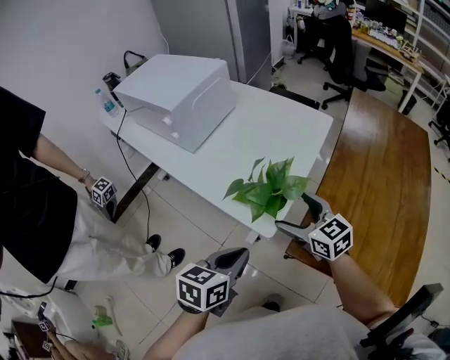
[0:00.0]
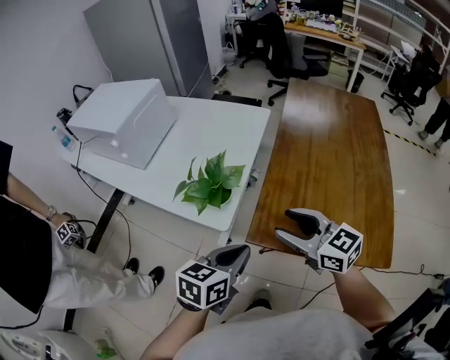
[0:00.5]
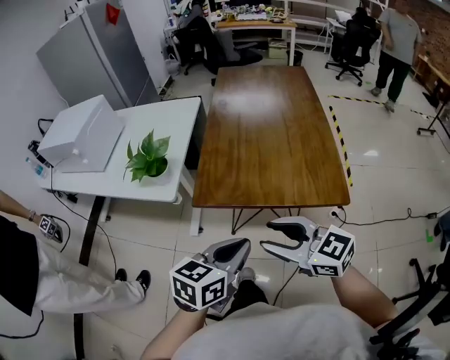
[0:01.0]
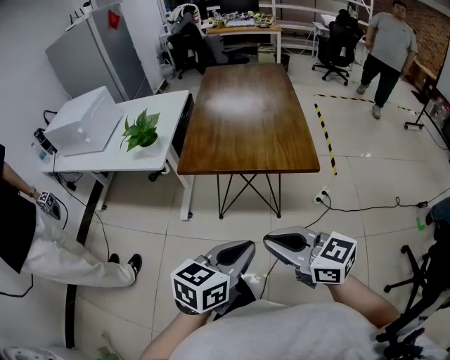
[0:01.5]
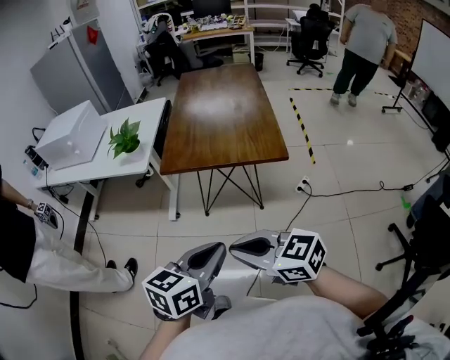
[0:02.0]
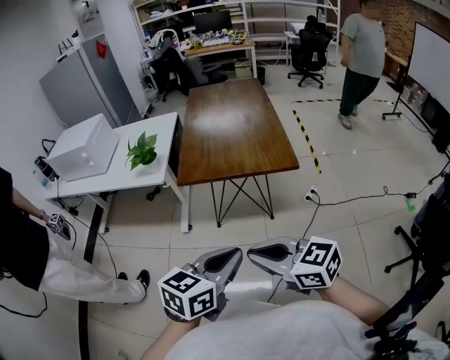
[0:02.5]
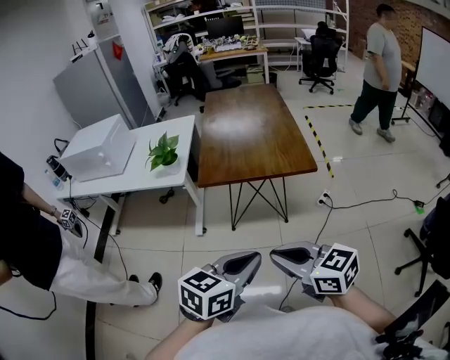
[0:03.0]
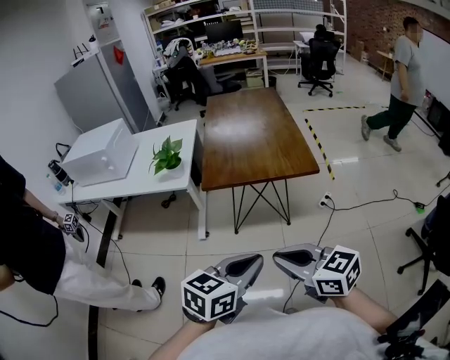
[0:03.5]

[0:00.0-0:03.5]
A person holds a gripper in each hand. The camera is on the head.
0:00.0 to 0:02.0: The two grippers travel together, backward and to the right, approximately 60 cm. The left gripper changes its angle by approximately 30 degrees; the right gripper closes up.
0:02.0 to 0:03.5: The grippers both shift to the left by roughly 5 cm.

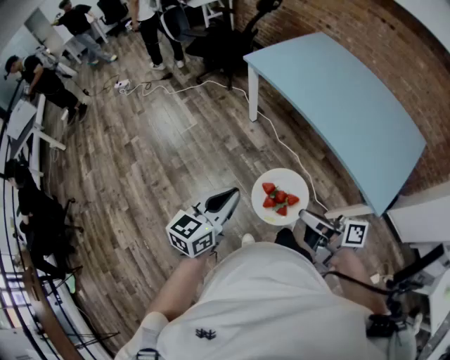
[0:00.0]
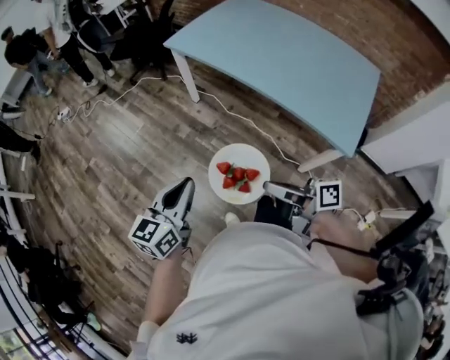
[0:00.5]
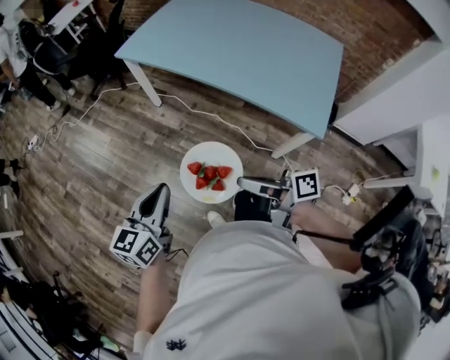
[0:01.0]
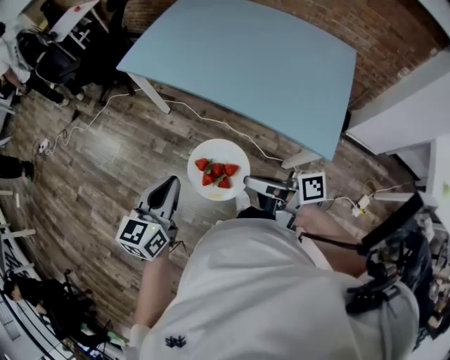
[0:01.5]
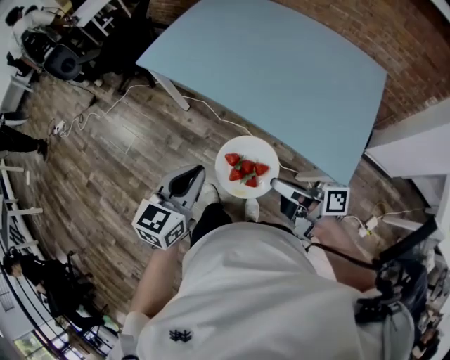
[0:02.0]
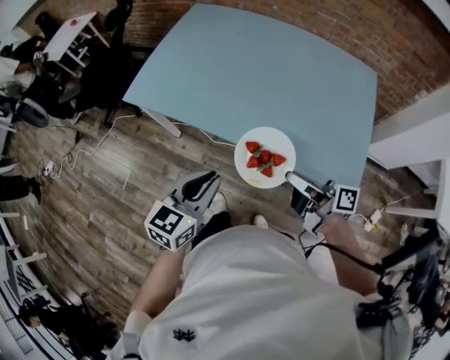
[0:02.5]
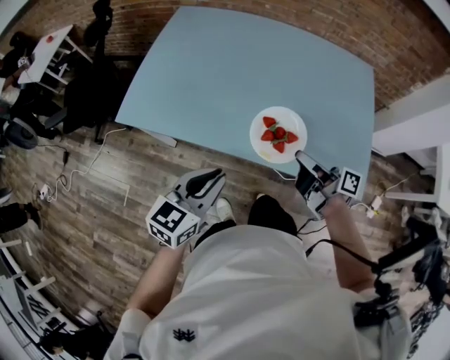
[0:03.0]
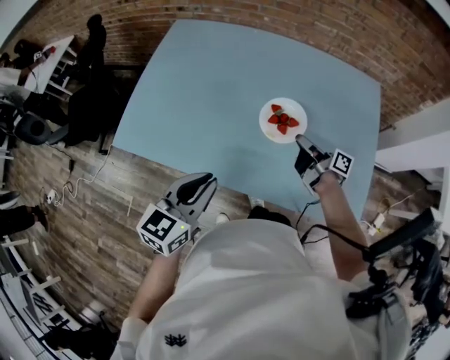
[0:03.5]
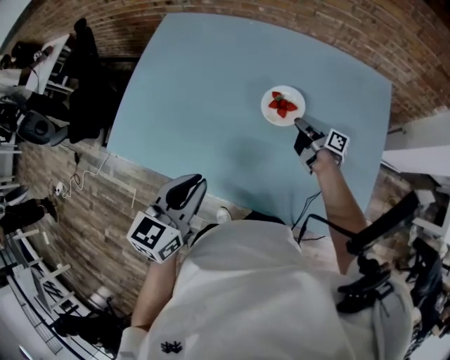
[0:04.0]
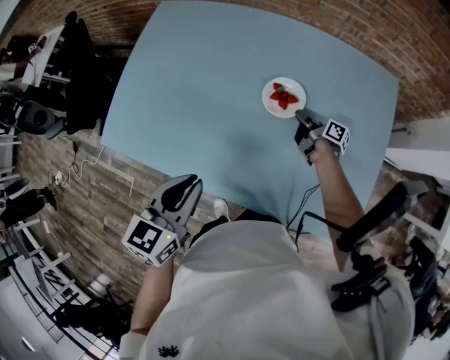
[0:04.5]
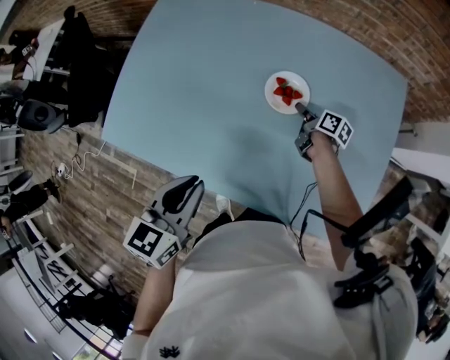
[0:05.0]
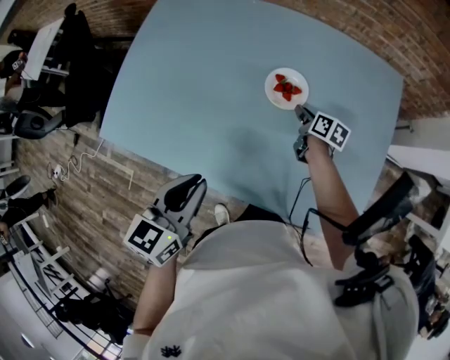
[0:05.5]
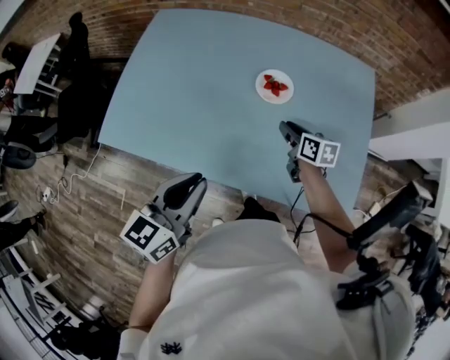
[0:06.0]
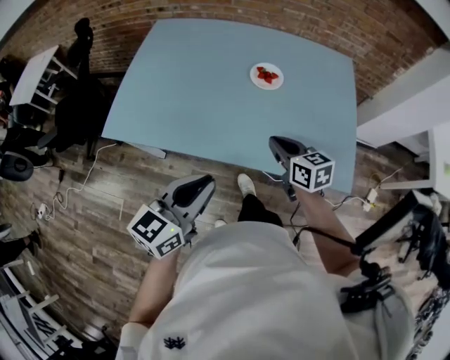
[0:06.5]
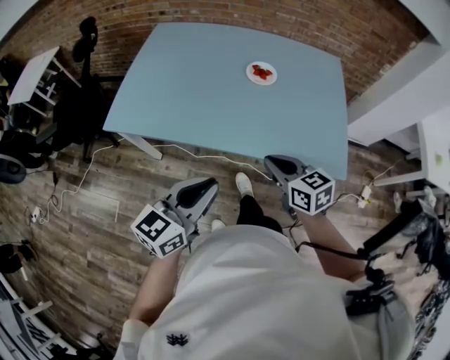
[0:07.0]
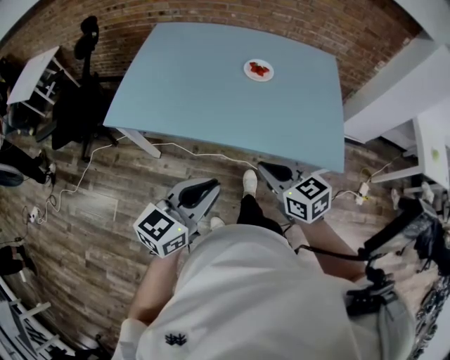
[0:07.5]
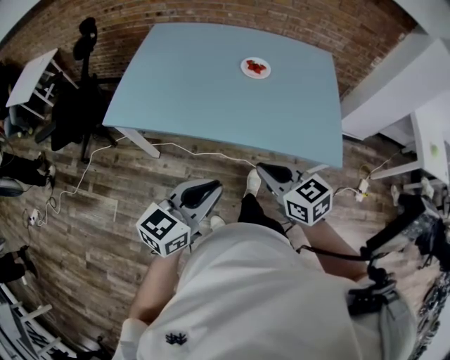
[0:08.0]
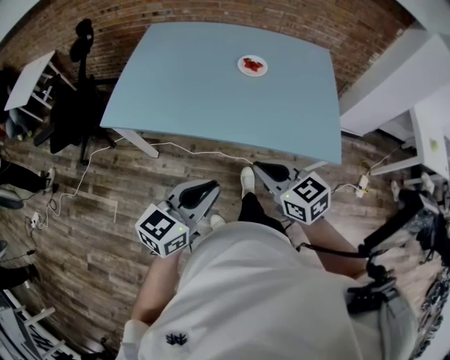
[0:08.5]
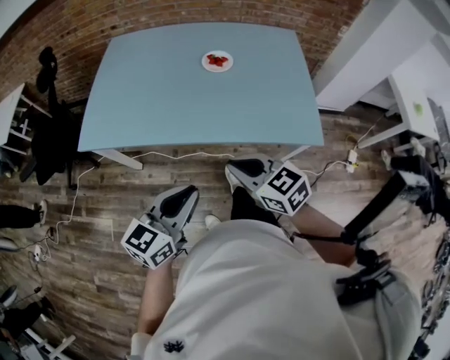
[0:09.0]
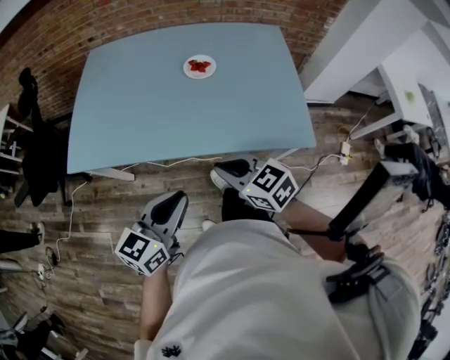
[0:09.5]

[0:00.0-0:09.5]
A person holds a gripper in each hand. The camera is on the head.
0:00.0 to 0:02.0: Both grippers travel together forward and to the right, roughly 25 cm.
0:02.0 to 0:04.0: The left gripper reaches some 5 cm upward, then returns, while the right gripper changes place by some 60 cm, and rotates approximately 40 degrees.
0:04.0 to 0:05.5: The right gripper swivels some 40 degrees, and opens up.
0:05.5 to 0:07.5: The right gripper goes about 50 cm backward and upward, twists some 50 degrees counterclockwise, seen from behind, and closes its fingers; the left gripper travels backward by approximately 30 cm, and turns by roughly 30 degrees.
0:07.5 to 0:09.5: The left gripper moves some 5 cm.

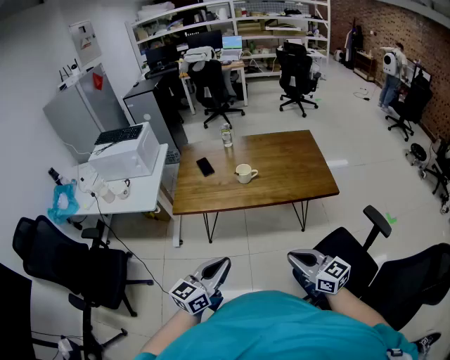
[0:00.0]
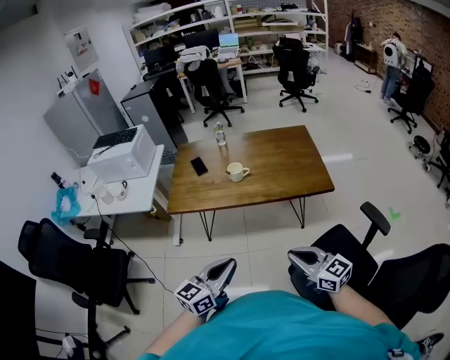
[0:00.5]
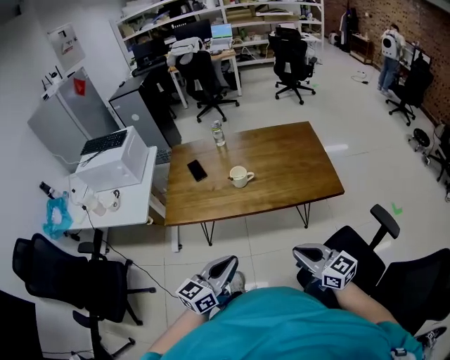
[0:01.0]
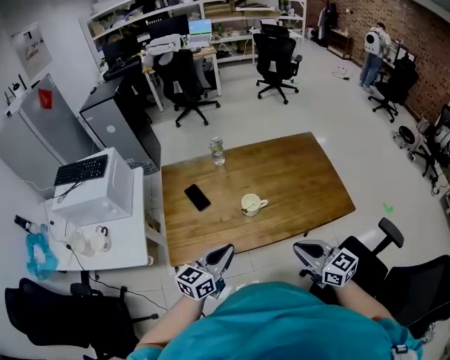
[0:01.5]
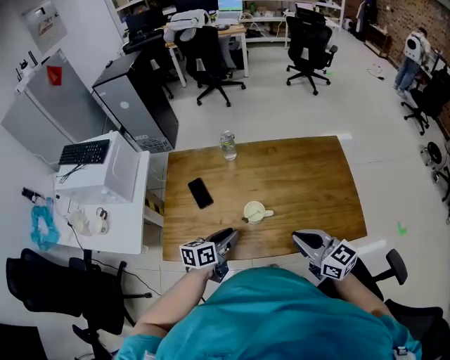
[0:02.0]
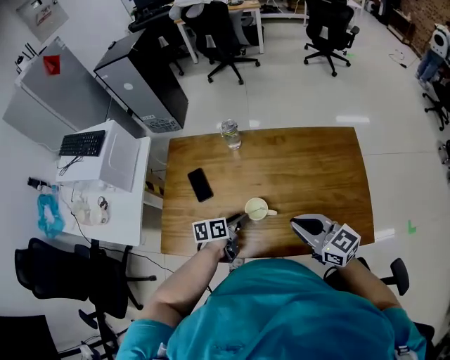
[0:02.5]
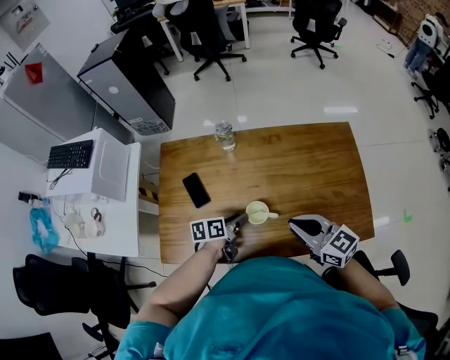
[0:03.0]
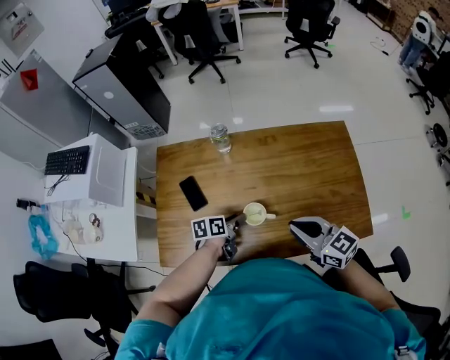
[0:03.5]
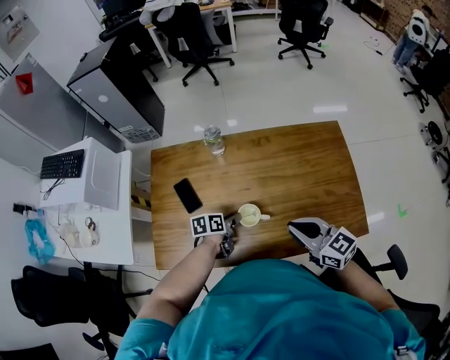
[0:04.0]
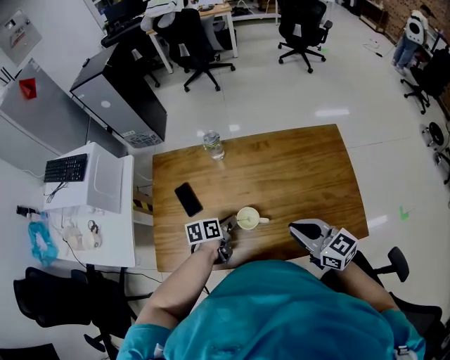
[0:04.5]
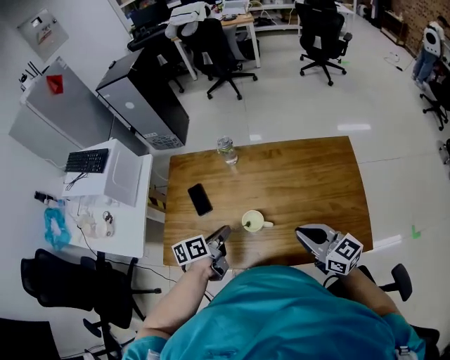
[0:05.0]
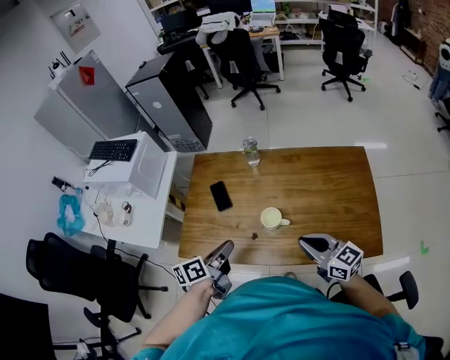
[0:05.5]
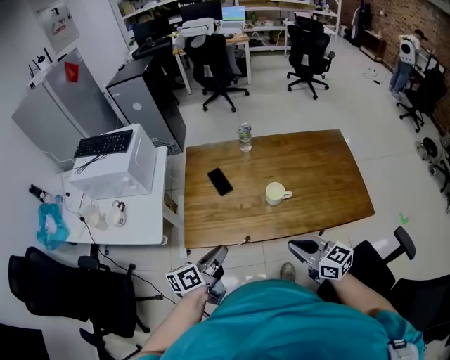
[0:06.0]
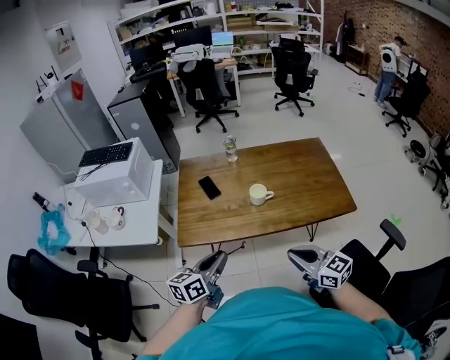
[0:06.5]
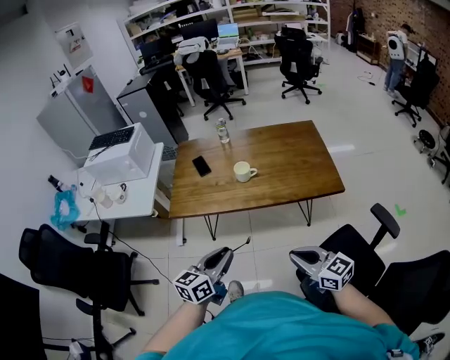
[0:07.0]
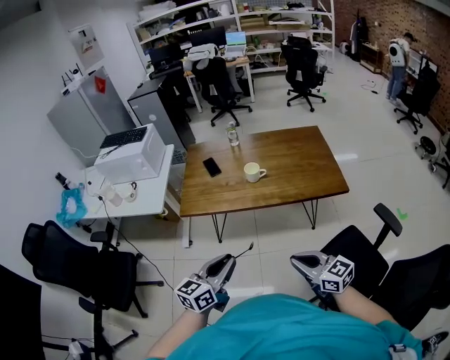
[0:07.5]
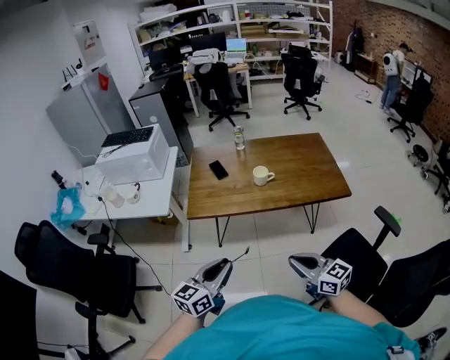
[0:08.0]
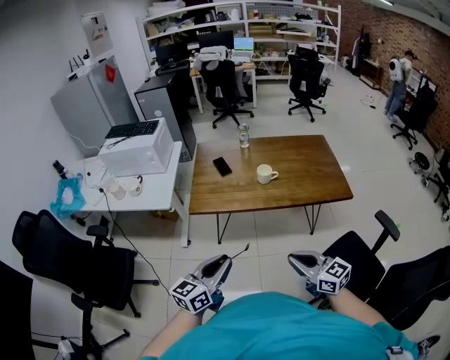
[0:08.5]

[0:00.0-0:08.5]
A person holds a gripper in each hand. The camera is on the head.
0:00.0 to 0:02.0: The two grippers travel together, forward, some 60 cm. The left gripper rotates roughly 40 degrees, and opens up.
0:02.0 to 0:04.0: The left gripper is displaced forward and downward by some 20 cm, and turns by some 30 degrees. Meanwhile the right gripper heads forward, covering about 15 cm.
0:04.0 to 0:06.5: The pair of grippers is taken backward, some 50 cm. The left gripper travels upward by approximately 25 cm, angles its fingers upward, by roughly 30 degrees, and closes up.
0:06.5 to 0:08.5: Both grippers travel together backward, approximately 25 cm.

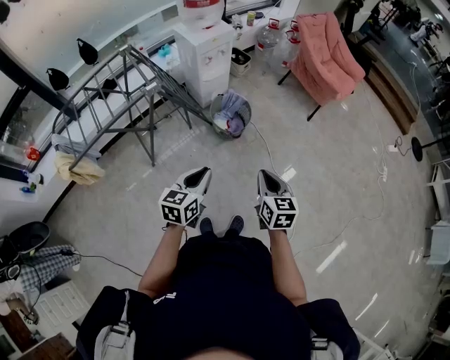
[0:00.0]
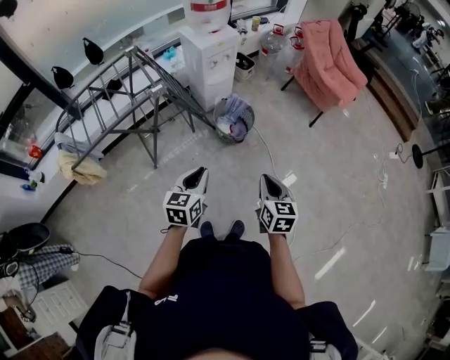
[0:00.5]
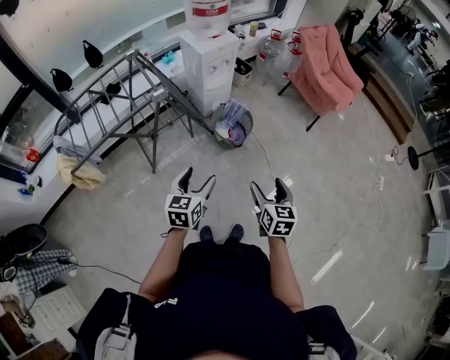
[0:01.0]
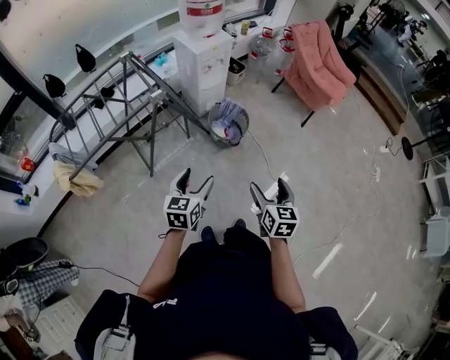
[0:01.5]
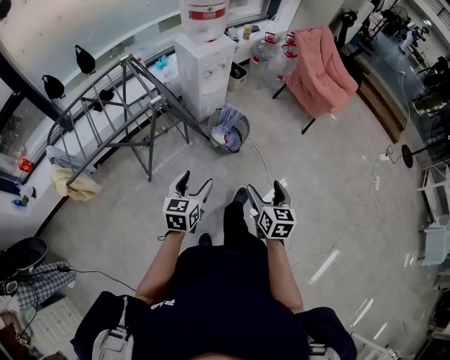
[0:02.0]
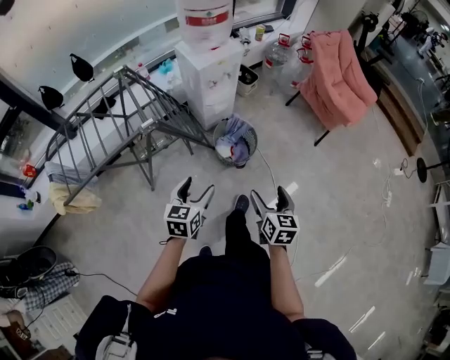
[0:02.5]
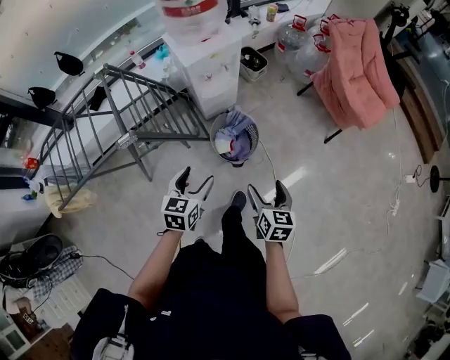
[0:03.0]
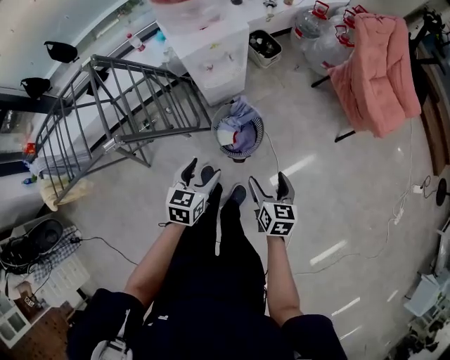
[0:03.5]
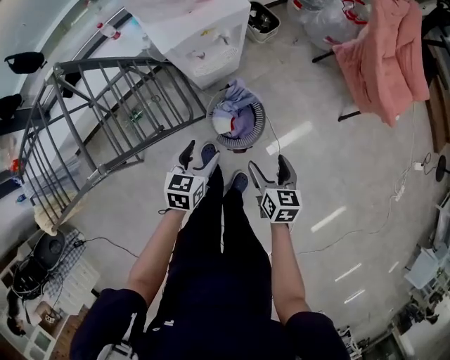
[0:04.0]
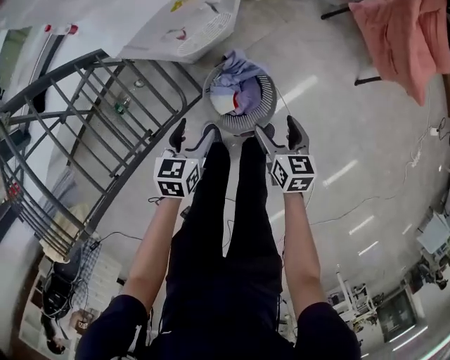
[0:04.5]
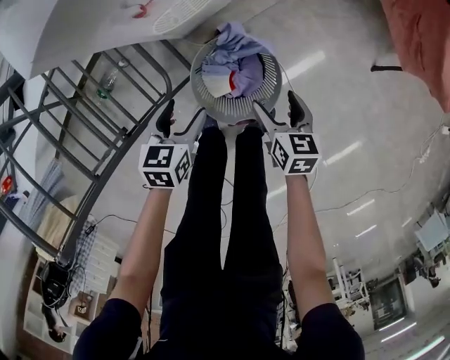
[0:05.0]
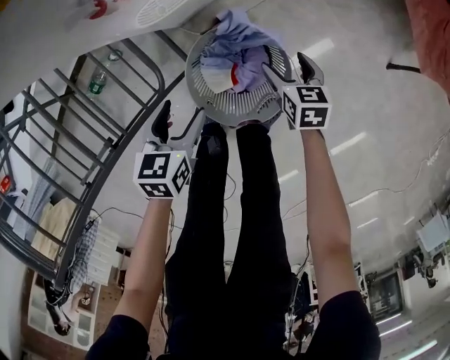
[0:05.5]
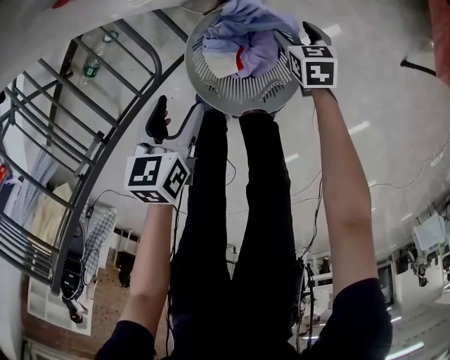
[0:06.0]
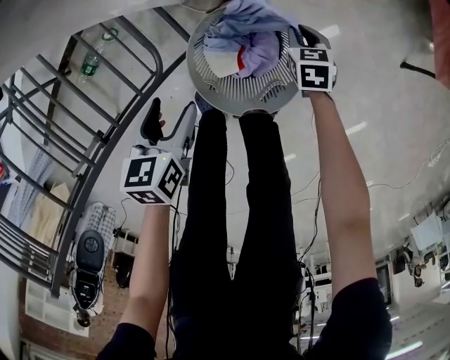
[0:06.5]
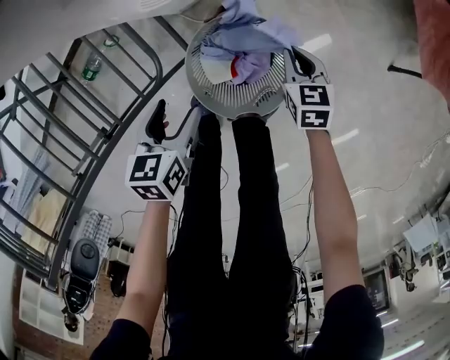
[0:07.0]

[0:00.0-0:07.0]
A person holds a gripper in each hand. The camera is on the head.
0:00.0 to 0:02.0: The left gripper heads to the left, covering about 10 cm, and opens. The right gripper opens its fingers.
0:02.0 to 0:03.5: Both grippers are carried forward, roughly 40 cm.
0:03.5 to 0:05.0: The grippers both shift downward and forward by approximately 40 cm.
0:05.0 to 0:07.0: The left gripper heads downward, covering some 5 cm; the right gripper goes roughly 15 cm downward and forward, swivels some 20 degrees, and closes.
